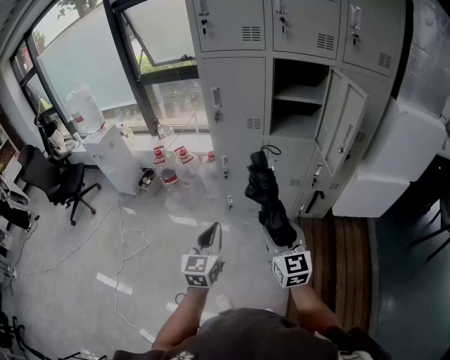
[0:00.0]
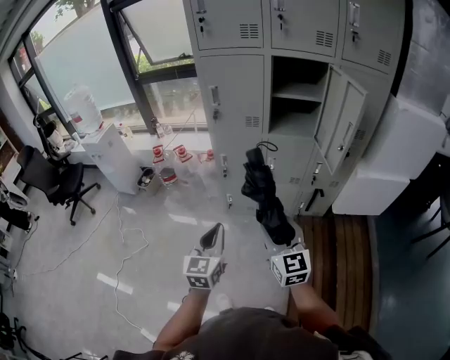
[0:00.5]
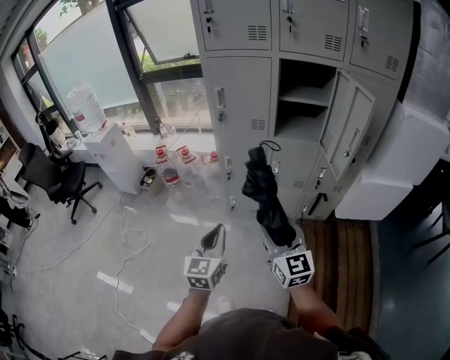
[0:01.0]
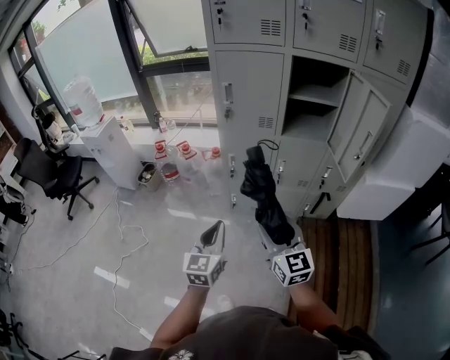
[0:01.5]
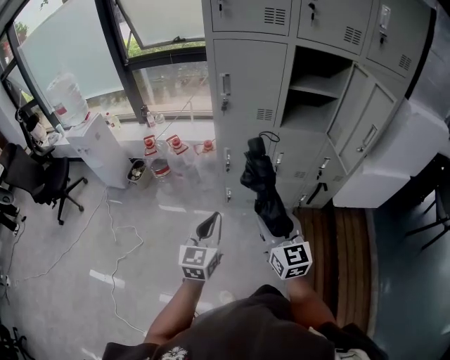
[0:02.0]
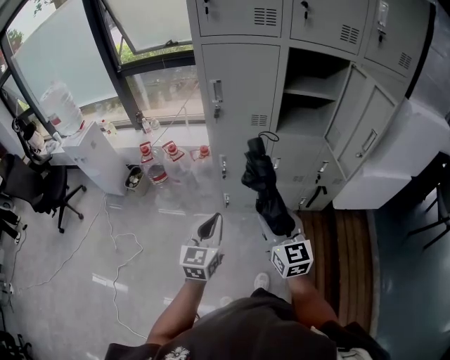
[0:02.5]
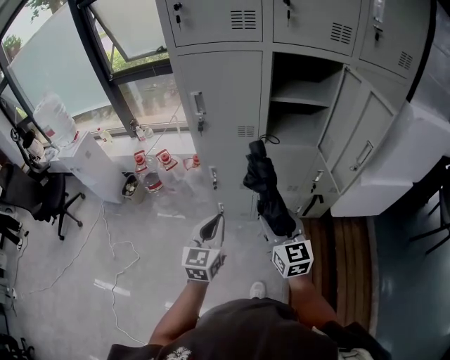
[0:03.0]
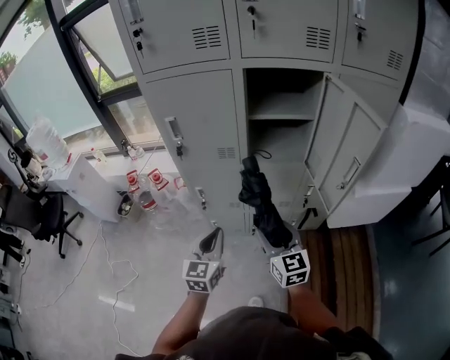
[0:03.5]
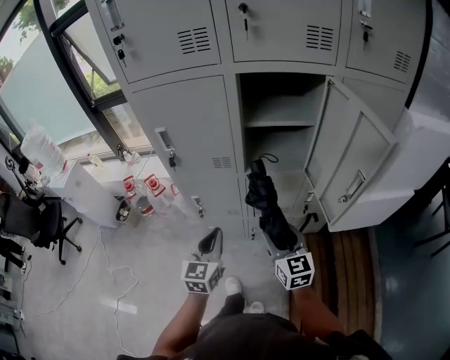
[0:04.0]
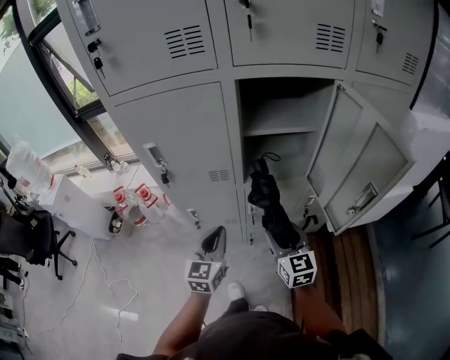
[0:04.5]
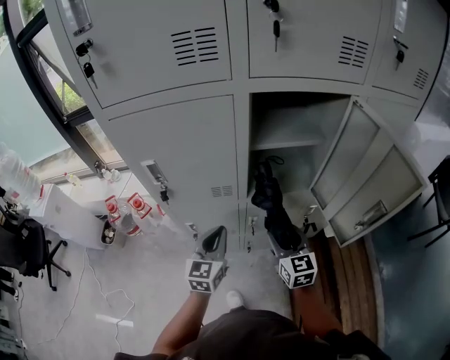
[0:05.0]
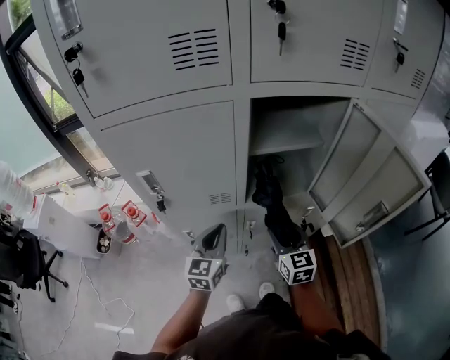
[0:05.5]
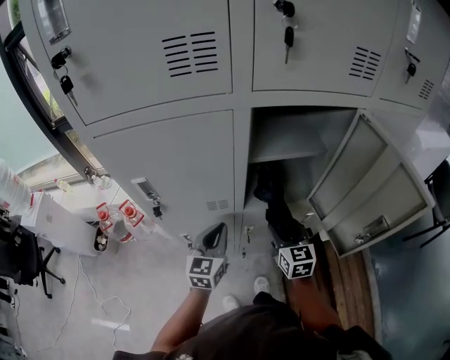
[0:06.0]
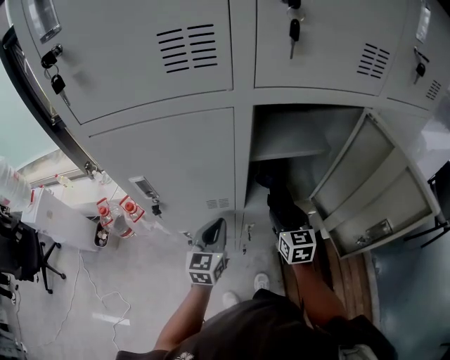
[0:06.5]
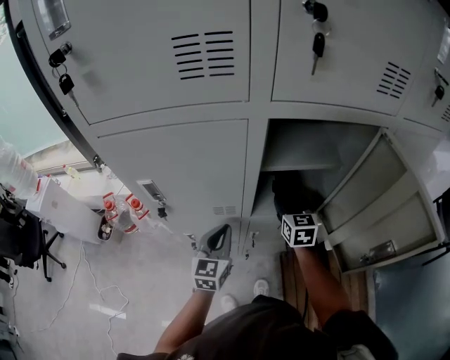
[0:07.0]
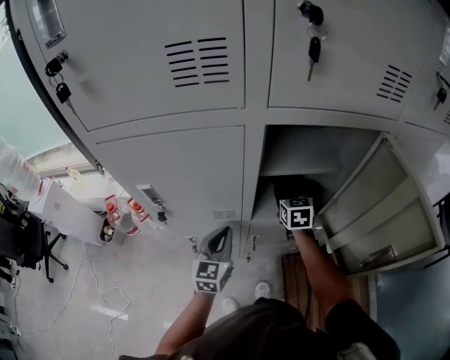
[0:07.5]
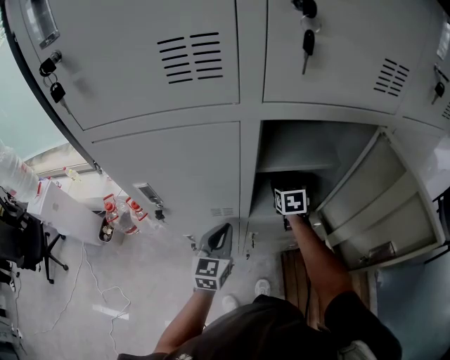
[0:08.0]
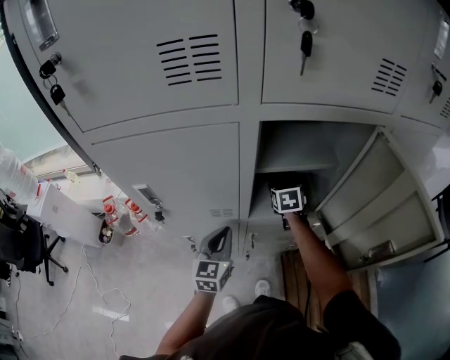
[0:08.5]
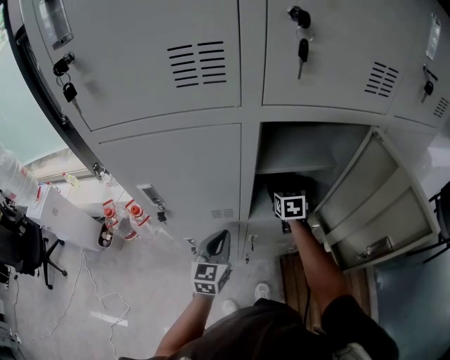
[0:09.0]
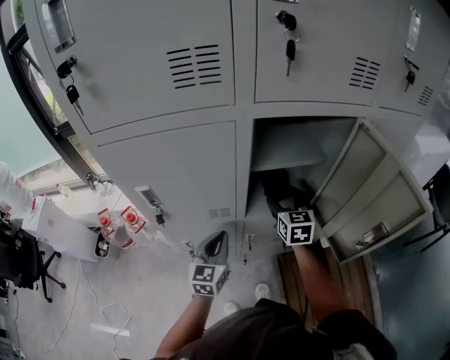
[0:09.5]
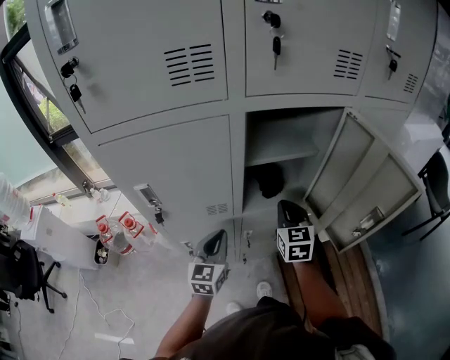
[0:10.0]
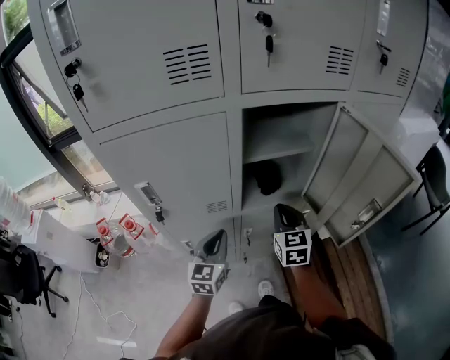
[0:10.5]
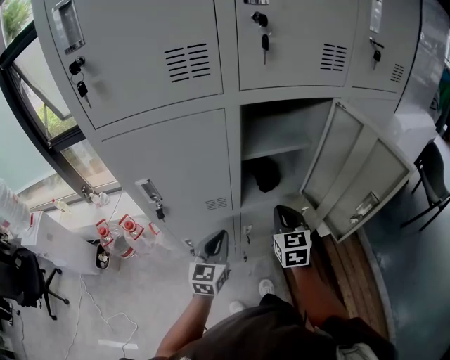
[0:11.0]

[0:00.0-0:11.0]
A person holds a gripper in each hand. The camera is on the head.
0:00.0 to 0:02.0: The right gripper travels to the left and forward by roughly 10 cm, while the left gripper is displaced forward and to the left by about 10 cm.
0:02.0 to 0:03.5: The grippers both shift forward and to the right by some 20 cm.
0:03.5 to 0:05.5: Both grippers travel together forward, roughly 20 cm.
0:05.5 to 0:07.5: The right gripper moves forward, about 20 cm, while the left gripper heads forward, covering about 5 cm.
0:07.5 to 0:09.0: The grippers move only a little.
0:09.0 to 0:11.0: The right gripper travels backward by about 20 cm, and closes up, while the left gripper shifts some 5 cm backward.

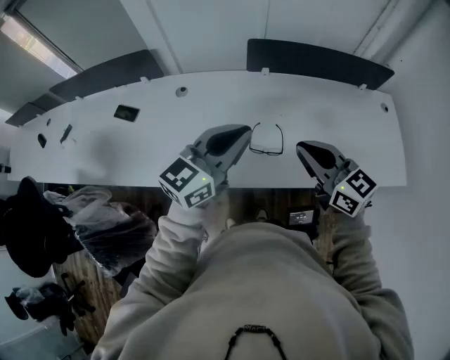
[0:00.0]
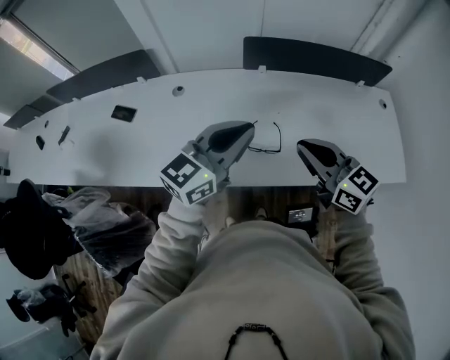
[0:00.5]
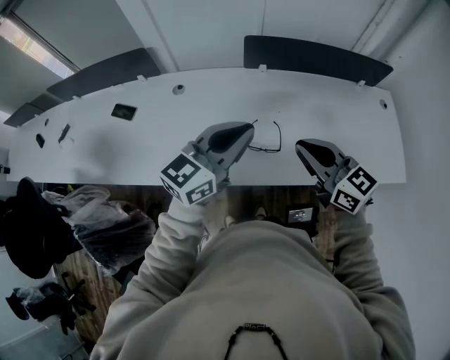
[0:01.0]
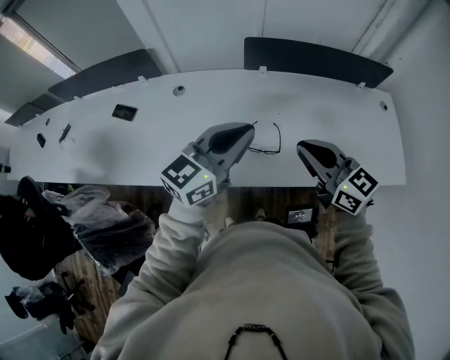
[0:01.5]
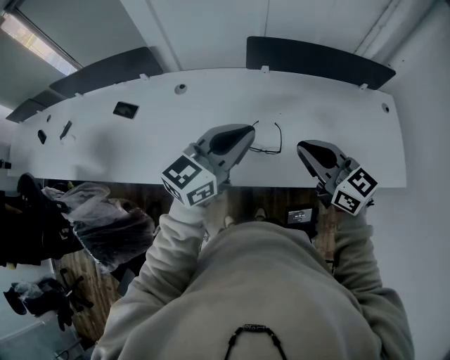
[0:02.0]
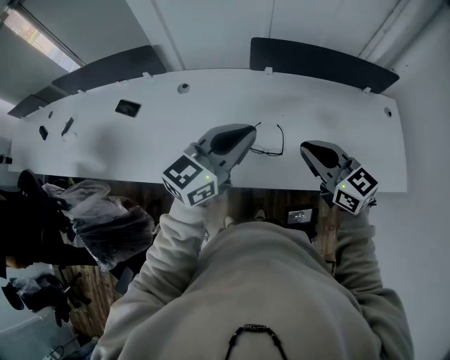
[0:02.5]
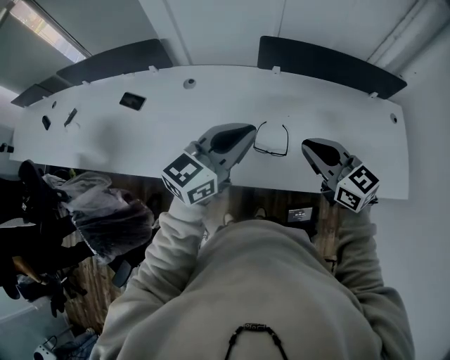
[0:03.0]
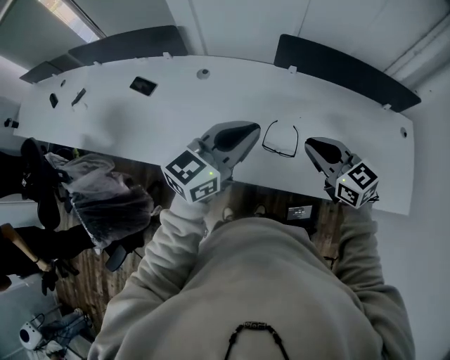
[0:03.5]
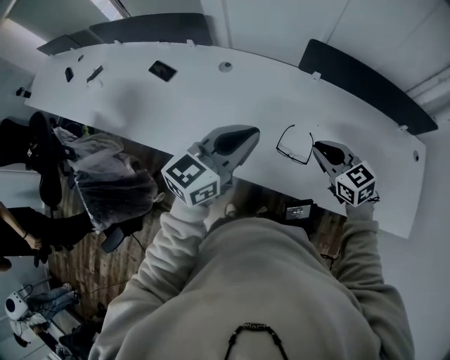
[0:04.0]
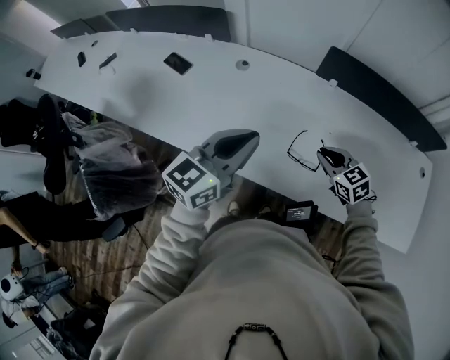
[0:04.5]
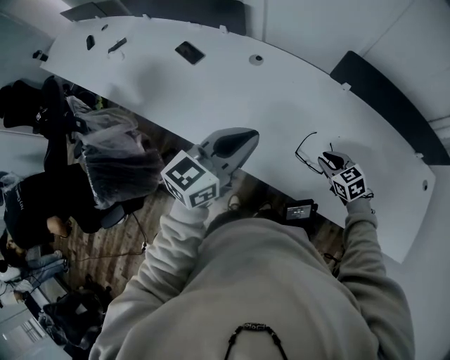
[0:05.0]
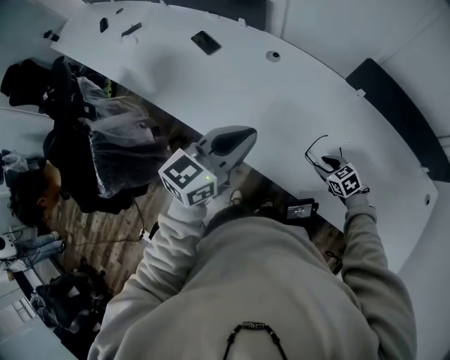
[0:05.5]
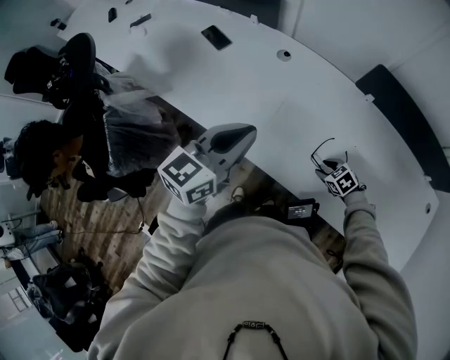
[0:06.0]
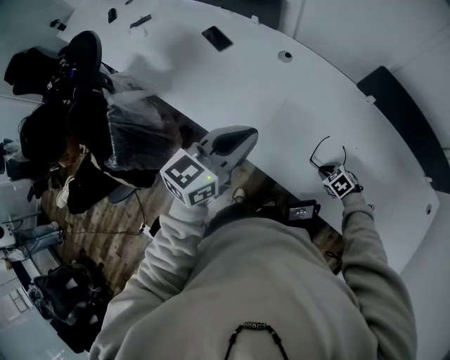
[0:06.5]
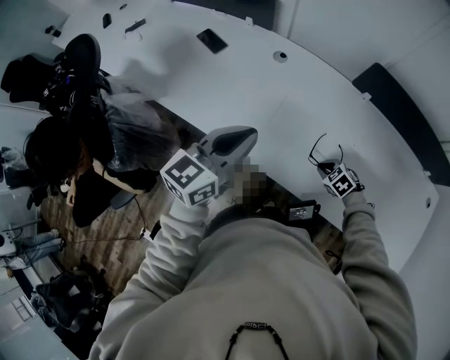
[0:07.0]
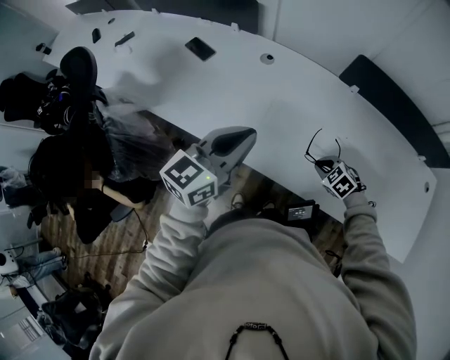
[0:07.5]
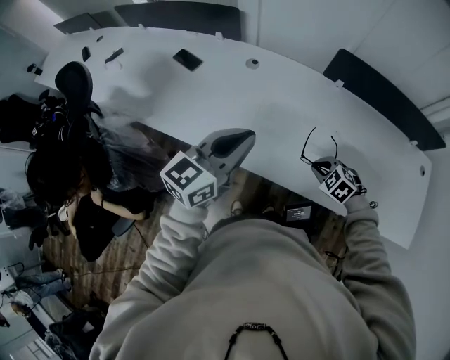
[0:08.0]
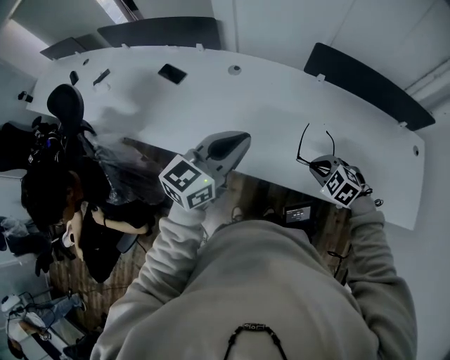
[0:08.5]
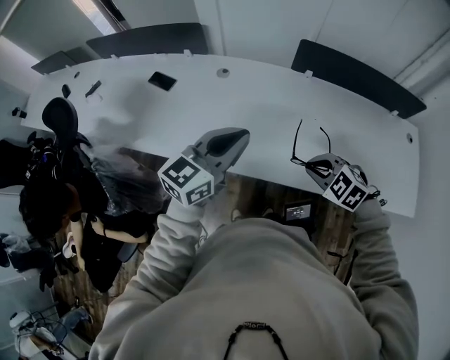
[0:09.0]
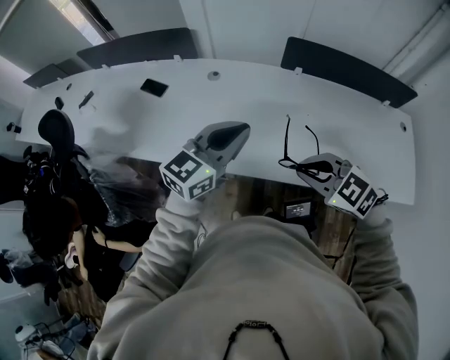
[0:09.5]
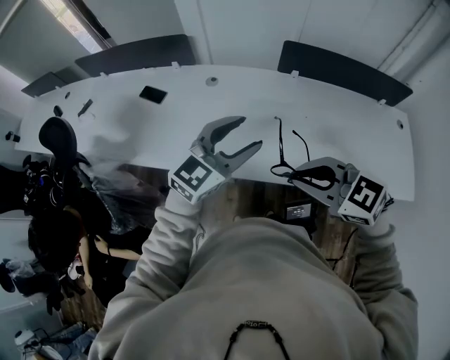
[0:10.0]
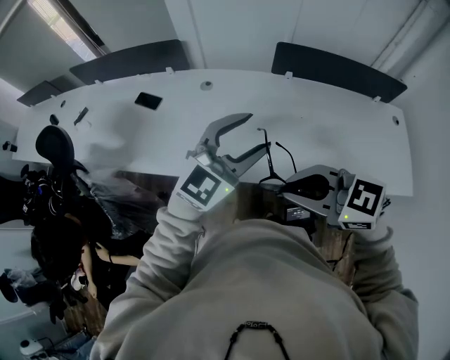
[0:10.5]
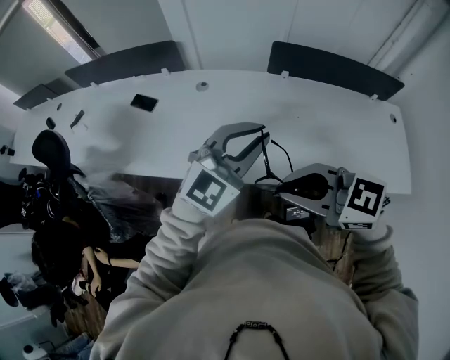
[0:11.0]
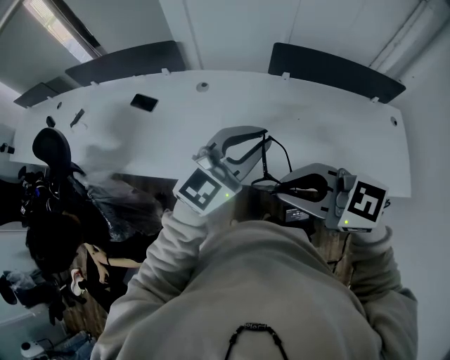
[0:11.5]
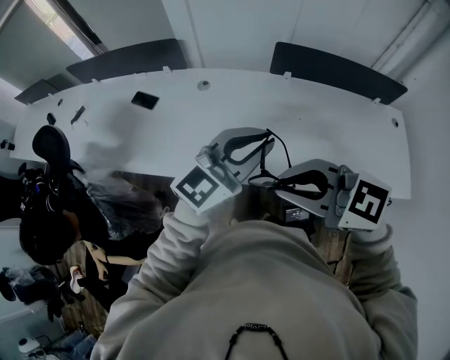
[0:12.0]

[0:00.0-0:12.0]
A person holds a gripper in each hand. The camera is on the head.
0:00.0 to 0:02.0: There are only small adjustments of the grippers.
0:02.0 to 0:04.0: The right gripper travels downward and forward by roughly 15 cm, and changes its angle by roughly 20 degrees. Meanwhile the left gripper heads to the left, covering approximately 5 cm.
0:04.0 to 0:06.0: The left gripper is displaced to the left by about 15 cm. The right gripper goes some 25 cm downward, tilts its fingers approximately 40 degrees downward, and opens up.
0:06.0 to 0:08.0: The right gripper travels upward by some 10 cm, and closes.
0:08.0 to 0:10.0: The left gripper goes about 5 cm to the right, swivels some 30 degrees, and opens its fingers; the right gripper heads upward and backward, covering approximately 30 cm, and points its fingers approximately 30 degrees further upward.
0:10.0 to 0:12.0: The grippers both shift upward by some 5 cm. The left gripper closes its fingers.

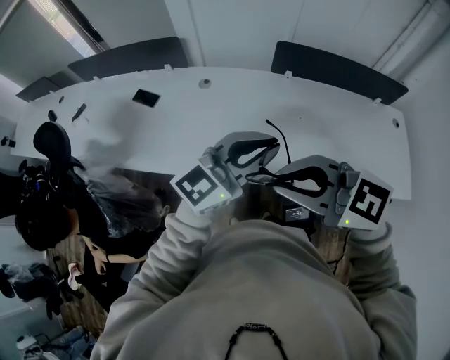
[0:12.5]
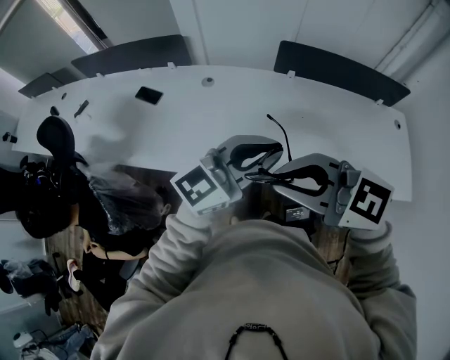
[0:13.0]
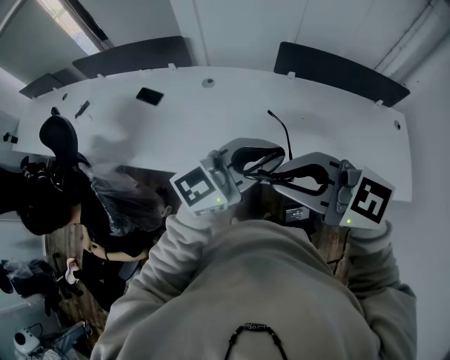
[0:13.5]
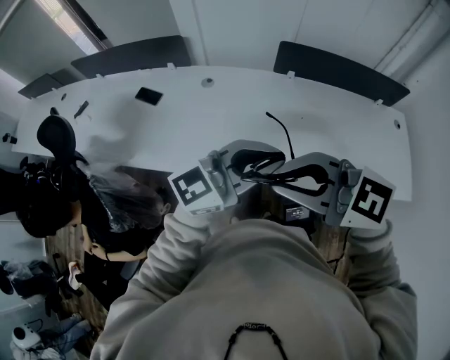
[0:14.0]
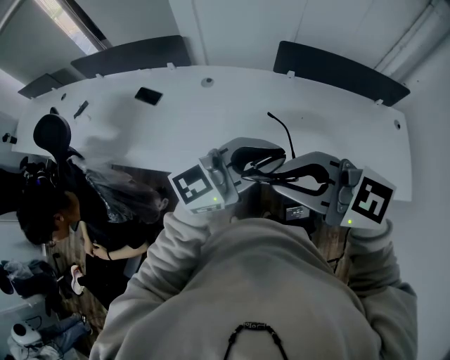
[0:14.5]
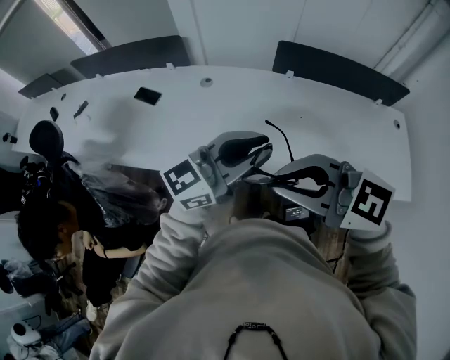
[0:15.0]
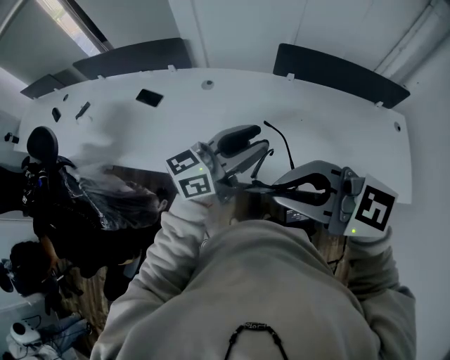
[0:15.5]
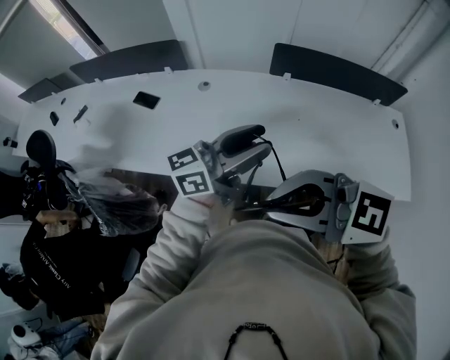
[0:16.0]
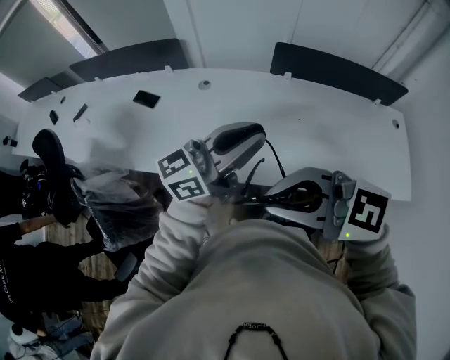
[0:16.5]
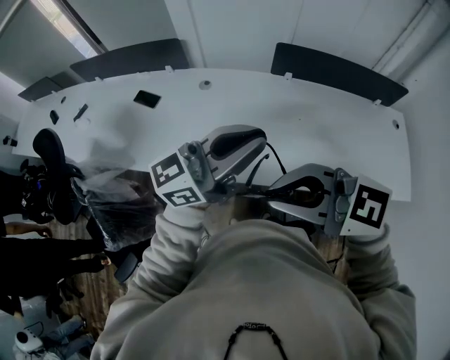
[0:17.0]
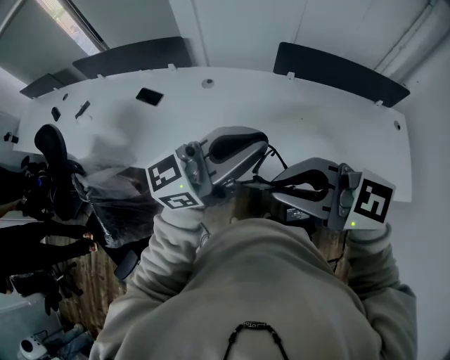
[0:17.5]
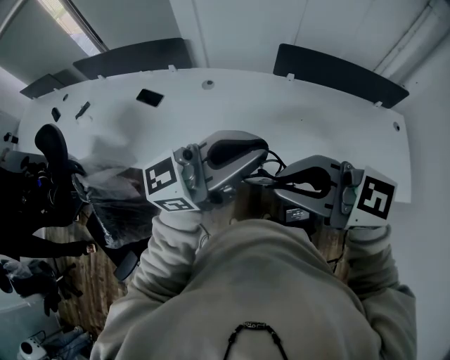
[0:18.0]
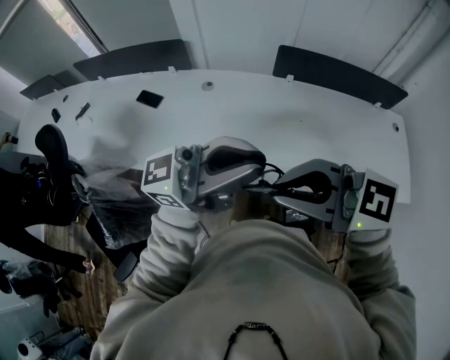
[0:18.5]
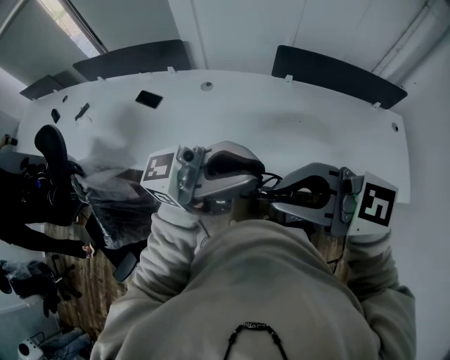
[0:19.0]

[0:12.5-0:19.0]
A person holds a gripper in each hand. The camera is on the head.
0:12.5 to 0:14.5: The grippers make only small movements.
0:14.5 to 0:17.0: The left gripper moves roughly 5 cm, and opens, then closes again.
0:17.0 to 0:19.0: The left gripper ends up some 10 cm from where it was, and turns by roughly 30 degrees.
